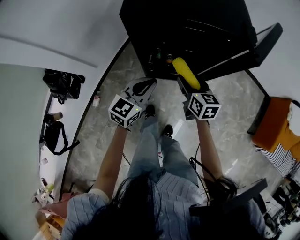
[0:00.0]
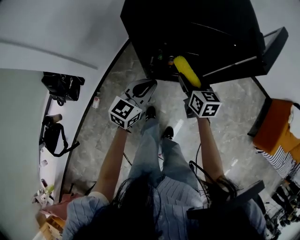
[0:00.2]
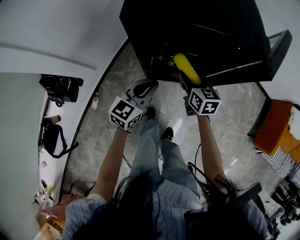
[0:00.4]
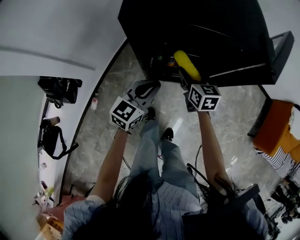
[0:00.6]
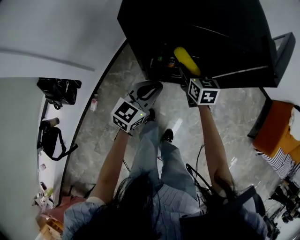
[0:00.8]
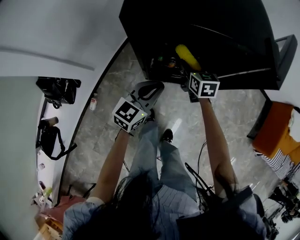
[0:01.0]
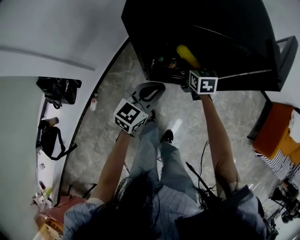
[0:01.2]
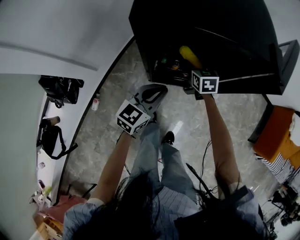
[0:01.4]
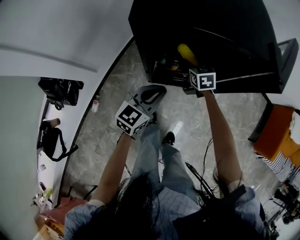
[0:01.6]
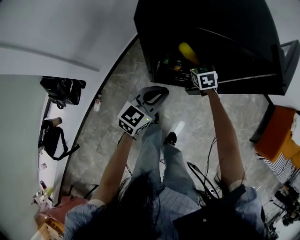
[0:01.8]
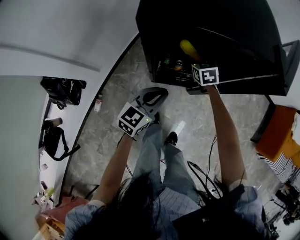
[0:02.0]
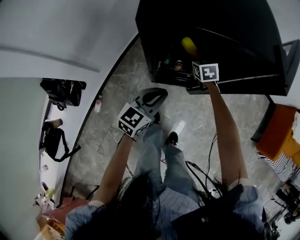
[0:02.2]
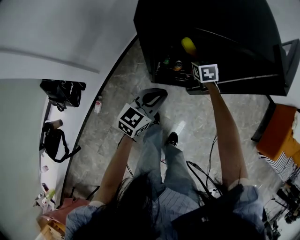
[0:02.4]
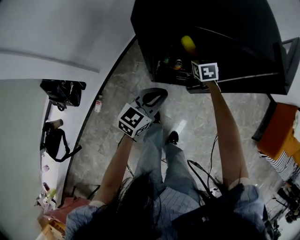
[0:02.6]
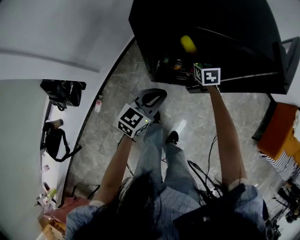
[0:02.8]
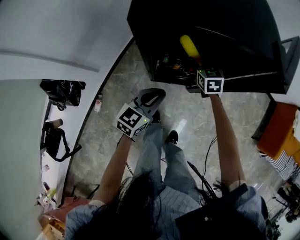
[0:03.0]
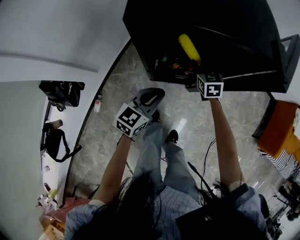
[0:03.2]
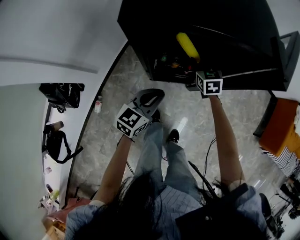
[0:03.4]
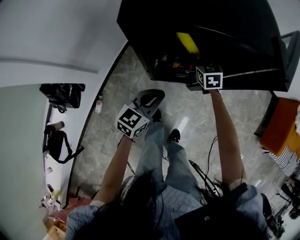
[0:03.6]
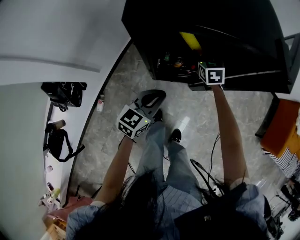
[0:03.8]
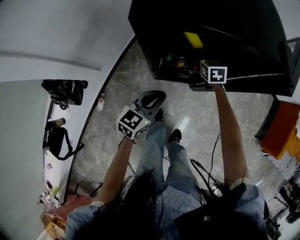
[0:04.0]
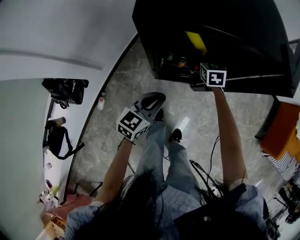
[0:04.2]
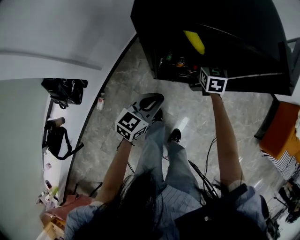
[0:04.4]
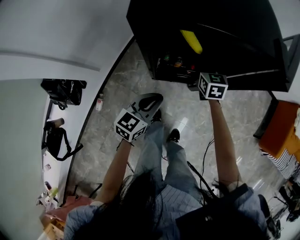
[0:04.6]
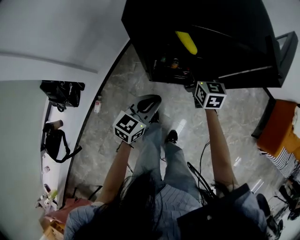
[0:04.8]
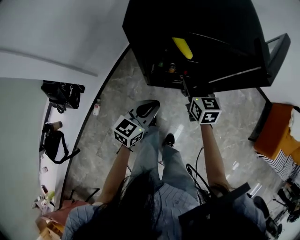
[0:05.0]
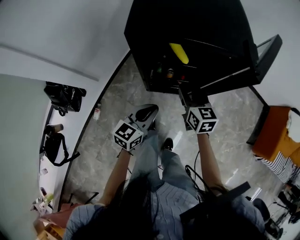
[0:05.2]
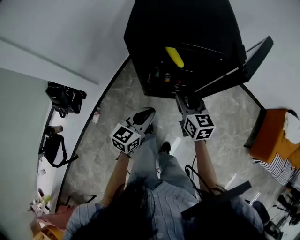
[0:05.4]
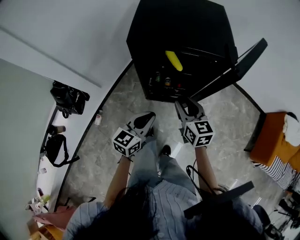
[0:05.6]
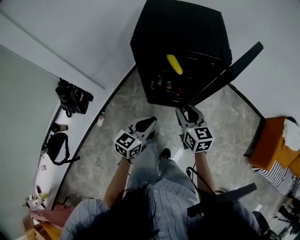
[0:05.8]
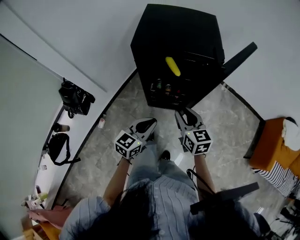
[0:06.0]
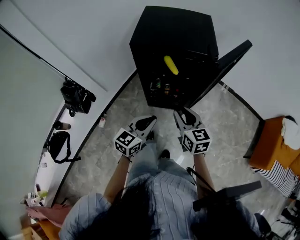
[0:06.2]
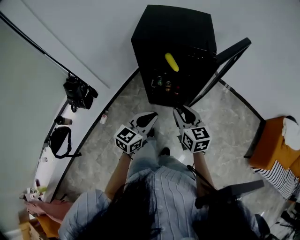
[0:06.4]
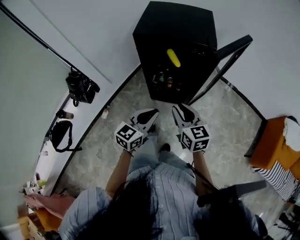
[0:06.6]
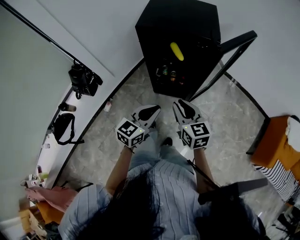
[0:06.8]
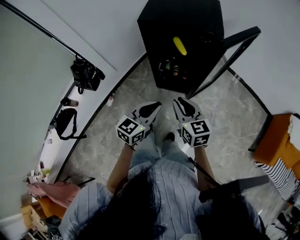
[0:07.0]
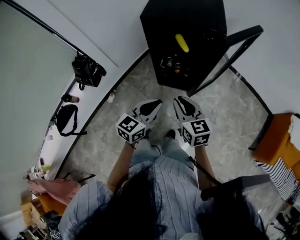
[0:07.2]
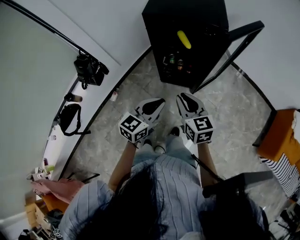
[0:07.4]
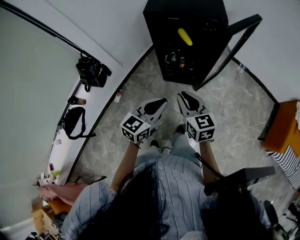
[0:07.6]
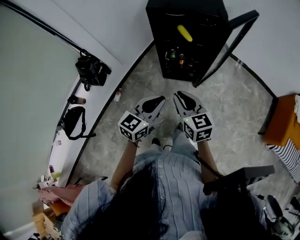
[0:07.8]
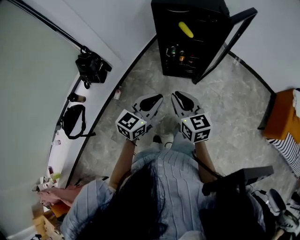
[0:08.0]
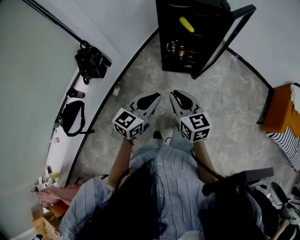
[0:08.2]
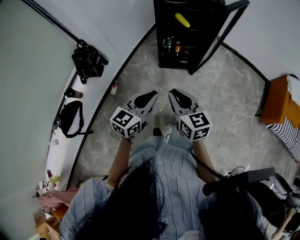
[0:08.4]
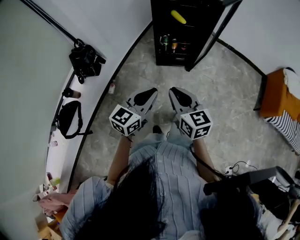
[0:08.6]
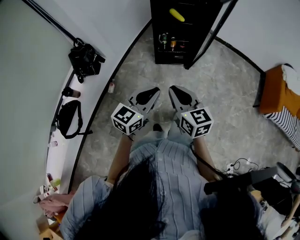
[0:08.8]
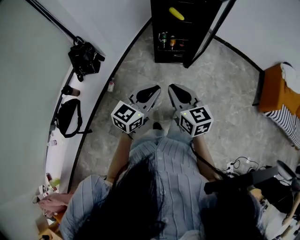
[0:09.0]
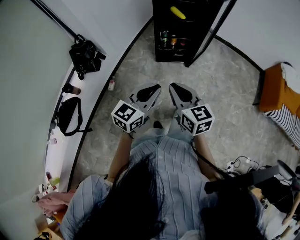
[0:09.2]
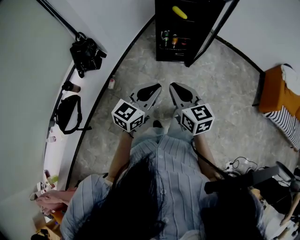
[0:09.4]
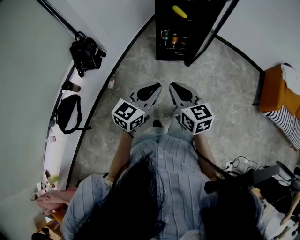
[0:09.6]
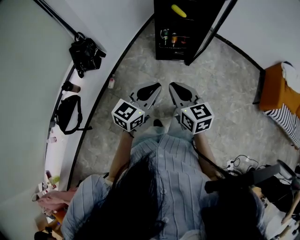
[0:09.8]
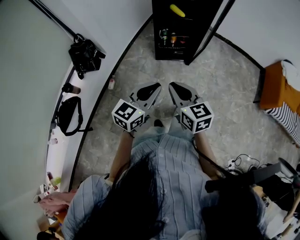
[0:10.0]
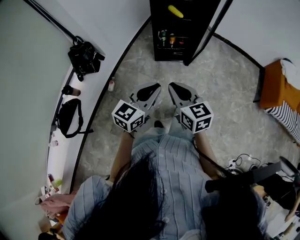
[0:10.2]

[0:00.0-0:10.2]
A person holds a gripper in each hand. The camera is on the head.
0:00.0 to 0:01.4: The right gripper heads forward and downward, covering about 20 cm, and changes its angle by about 20 degrees; the left gripper moves downward, about 5 cm.
0:01.4 to 0:04.4: The grippers move only a little.
0:04.4 to 0:05.8: The left gripper moves upward, backward and to the right, about 15 cm. The right gripper moves backward and upward, roughly 30 cm, and turns by some 20 degrees.
0:05.8 to 0:07.2: The left gripper heads backward and upward, covering roughly 15 cm. The right gripper travels backward by approximately 15 cm.
0:07.2 to 0:08.8: The grippers both shift backward and to the left by approximately 30 cm.
0:08.8 to 0:10.2: The grippers move only a little.

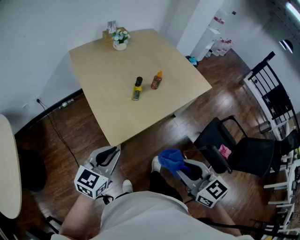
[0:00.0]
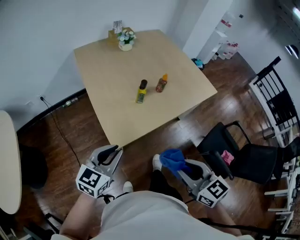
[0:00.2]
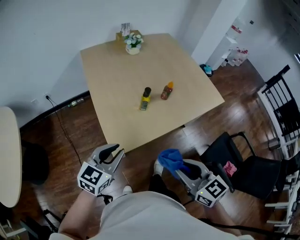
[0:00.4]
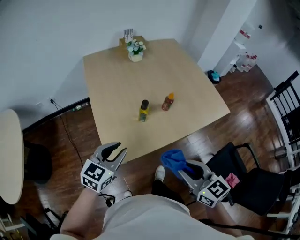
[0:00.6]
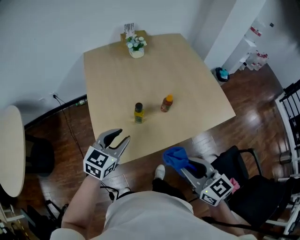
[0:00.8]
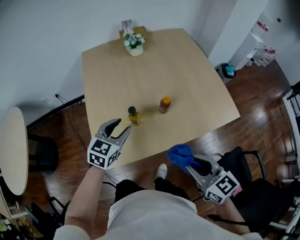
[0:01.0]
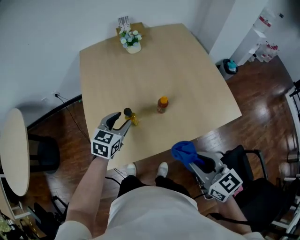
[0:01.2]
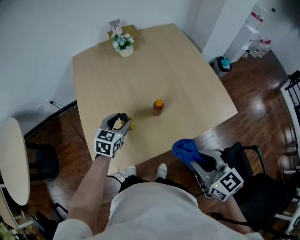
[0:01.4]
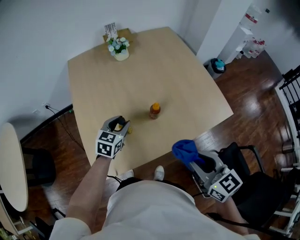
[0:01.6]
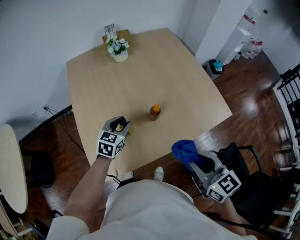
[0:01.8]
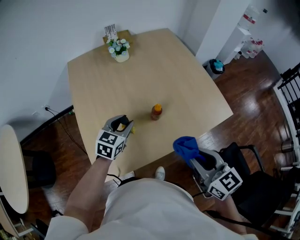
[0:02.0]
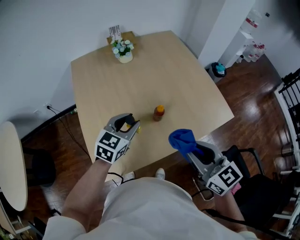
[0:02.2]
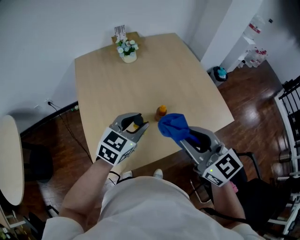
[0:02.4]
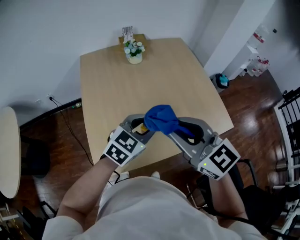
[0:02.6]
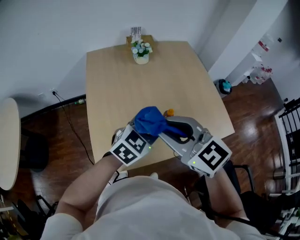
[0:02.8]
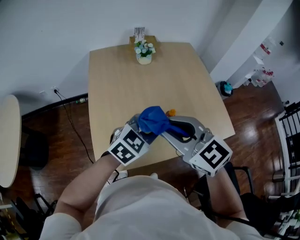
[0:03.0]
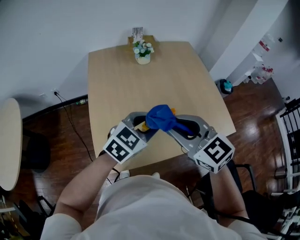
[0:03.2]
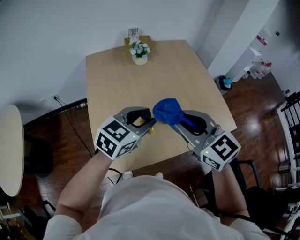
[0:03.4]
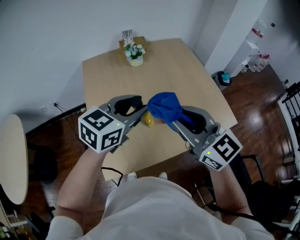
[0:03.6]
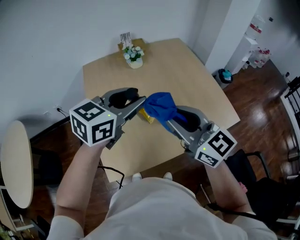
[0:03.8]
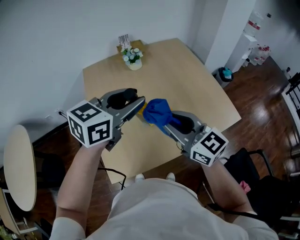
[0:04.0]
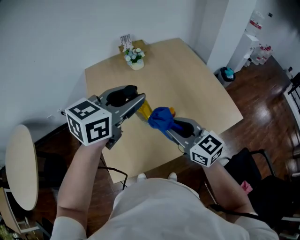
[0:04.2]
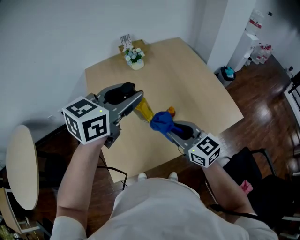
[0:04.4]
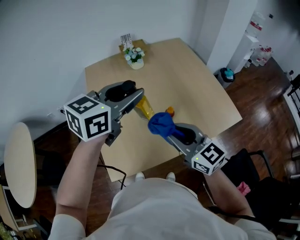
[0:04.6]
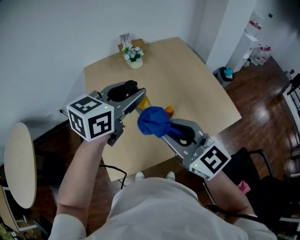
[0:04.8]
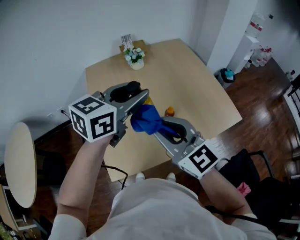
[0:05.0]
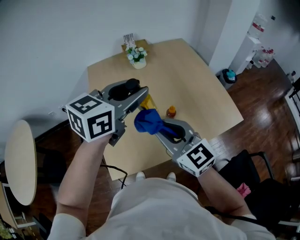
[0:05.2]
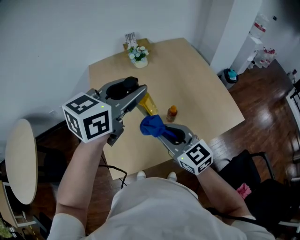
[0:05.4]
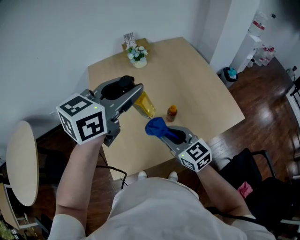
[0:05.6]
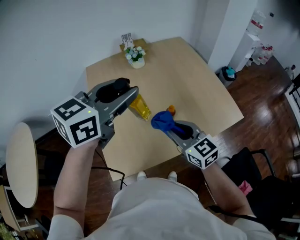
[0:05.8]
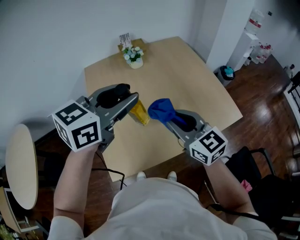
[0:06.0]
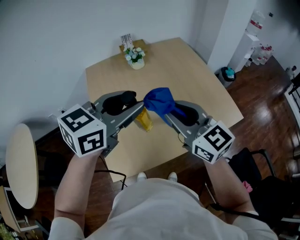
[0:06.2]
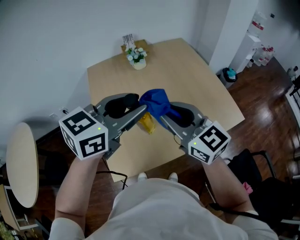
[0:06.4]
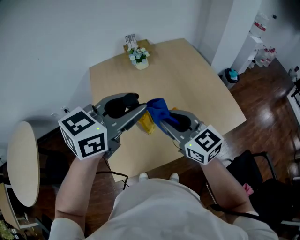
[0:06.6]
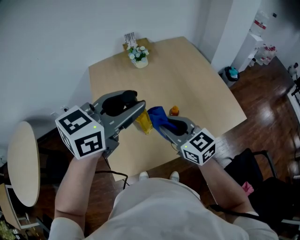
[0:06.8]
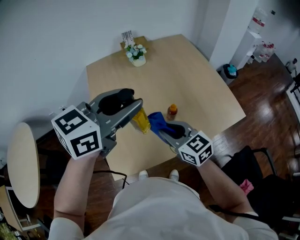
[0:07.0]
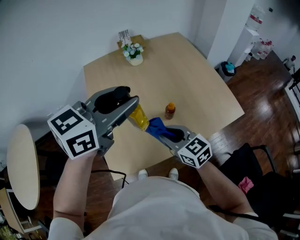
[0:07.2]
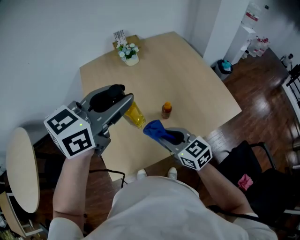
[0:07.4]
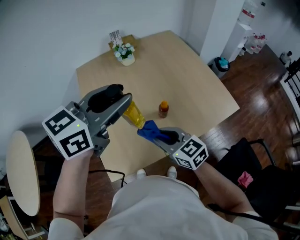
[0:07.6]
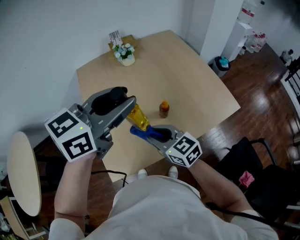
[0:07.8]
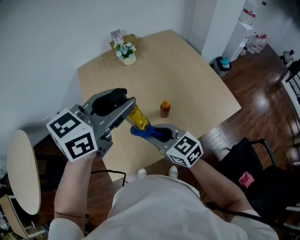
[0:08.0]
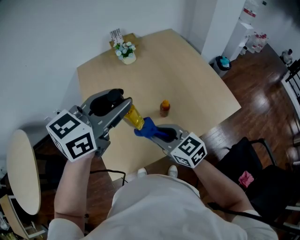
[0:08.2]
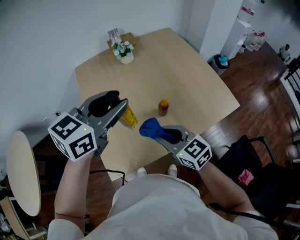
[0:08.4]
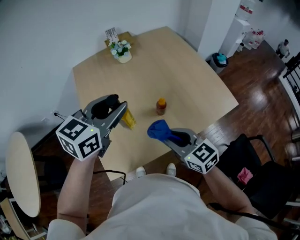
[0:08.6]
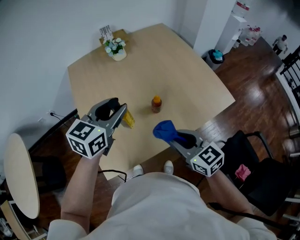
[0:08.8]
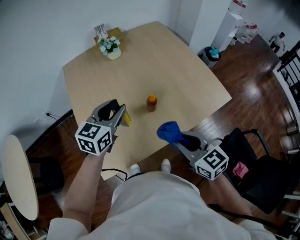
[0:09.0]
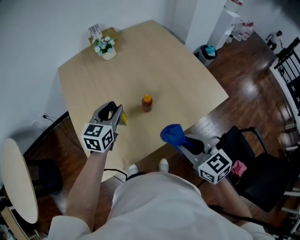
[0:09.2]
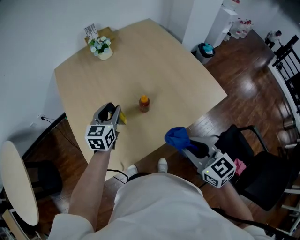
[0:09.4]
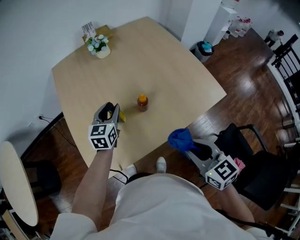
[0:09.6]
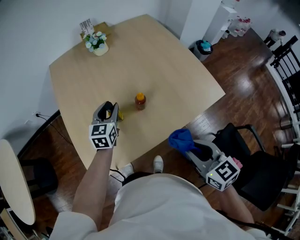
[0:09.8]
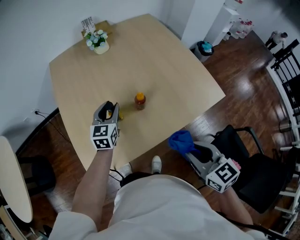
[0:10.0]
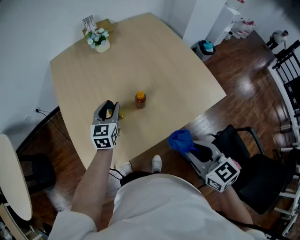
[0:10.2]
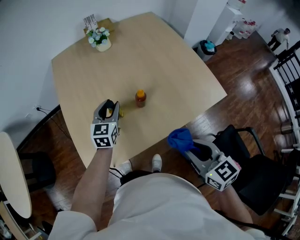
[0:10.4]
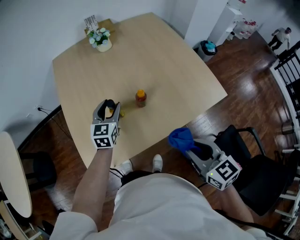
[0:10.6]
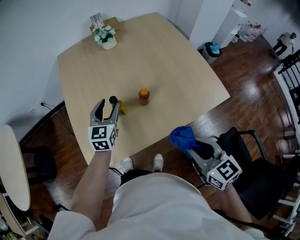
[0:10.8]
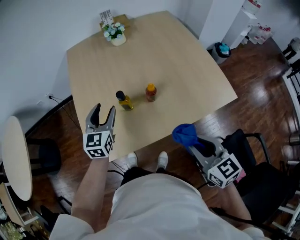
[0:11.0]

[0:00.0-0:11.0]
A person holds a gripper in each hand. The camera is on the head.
0:00.0 to 0:01.6: The two grippers go roughly 40 cm forward and to the right. The left gripper rotates some 20 degrees, and opens its fingers.
0:01.6 to 0:03.2: The right gripper shifts roughly 20 cm to the left, forward and upward, and turns by some 30 degrees. The left gripper travels upward and backward by about 15 cm, and swivels roughly 20 degrees.
0:03.2 to 0:04.8: The left gripper goes about 15 cm upward; the right gripper goes up and down, about 15 cm each way, reversing 2 times, and rotates some 20 degrees.
0:04.8 to 0:06.2: The right gripper is displaced forward by about 5 cm, and travels downward and back again, some 15 cm each way.
0:06.2 to 0:07.8: The right gripper travels downward by approximately 15 cm, and turns by some 20 degrees.
0:07.8 to 0:09.4: The left gripper moves downward, about 25 cm, and changes its angle by roughly 30 degrees; the right gripper shifts approximately 20 cm to the right and backward.
0:09.4 to 0:11.0: The left gripper moves backward and to the left, approximately 10 cm, and opens.

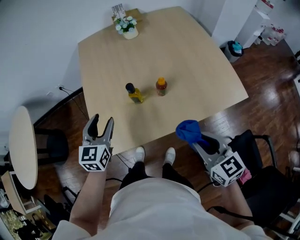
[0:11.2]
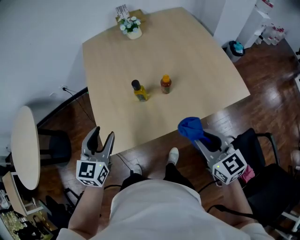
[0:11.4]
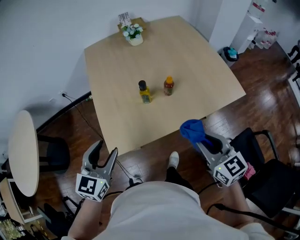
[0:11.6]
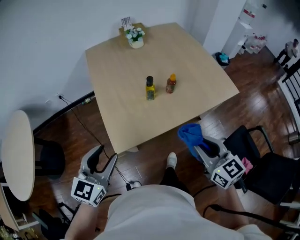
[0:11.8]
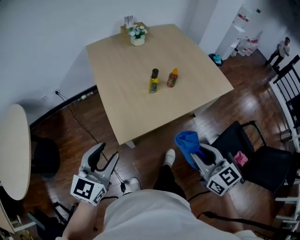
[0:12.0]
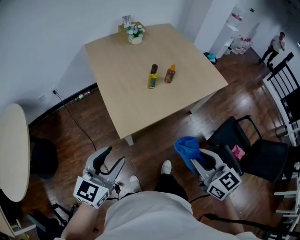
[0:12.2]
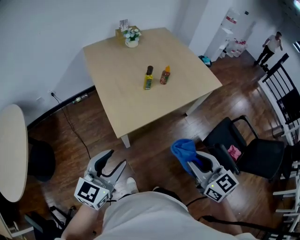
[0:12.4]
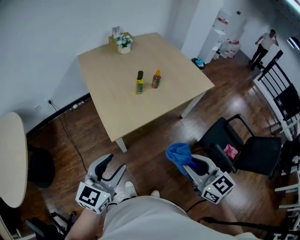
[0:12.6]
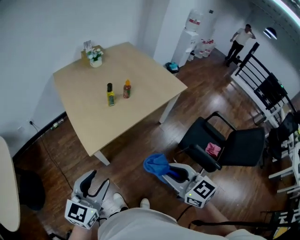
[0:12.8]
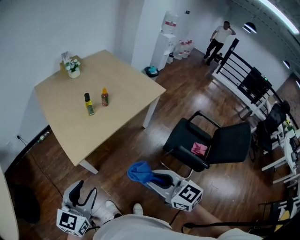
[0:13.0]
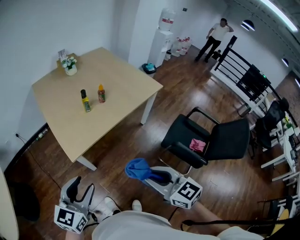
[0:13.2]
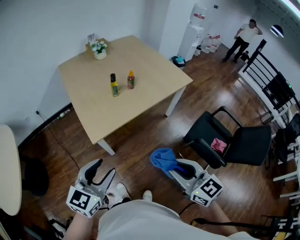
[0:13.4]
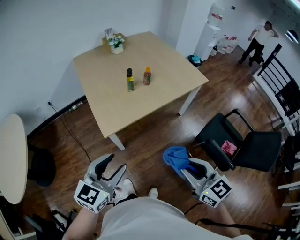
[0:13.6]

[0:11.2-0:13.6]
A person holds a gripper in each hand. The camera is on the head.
0:11.2 to 0:12.4: The right gripper travels backward and to the left by approximately 35 cm, while the left gripper travels backward by roughly 35 cm, and turns by approximately 30 degrees.
0:12.4 to 0:13.6: The left gripper moves to the right, roughly 10 cm, while the right gripper is displaced to the right and backward by some 10 cm.
